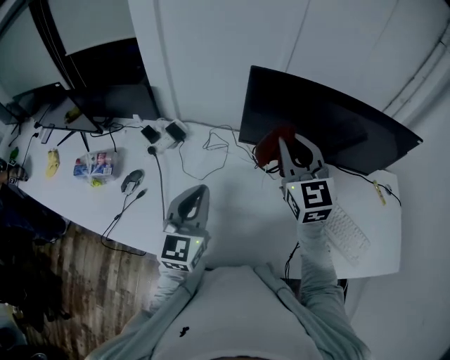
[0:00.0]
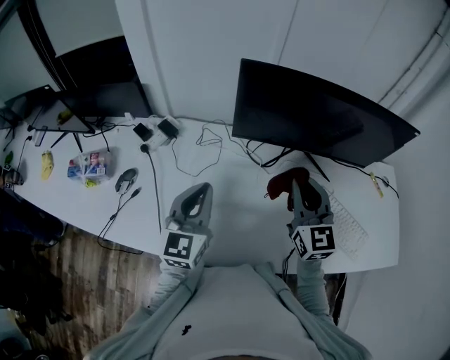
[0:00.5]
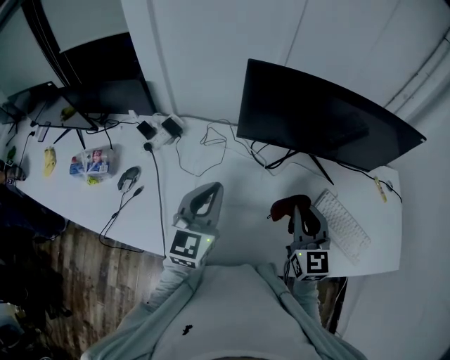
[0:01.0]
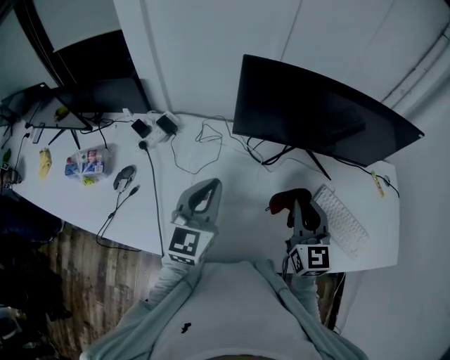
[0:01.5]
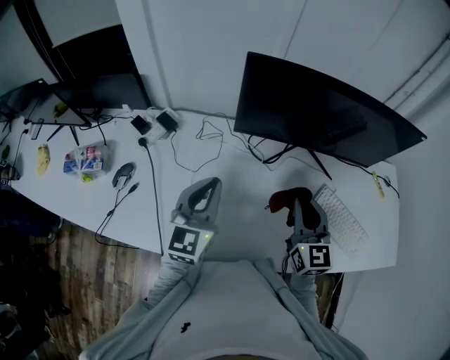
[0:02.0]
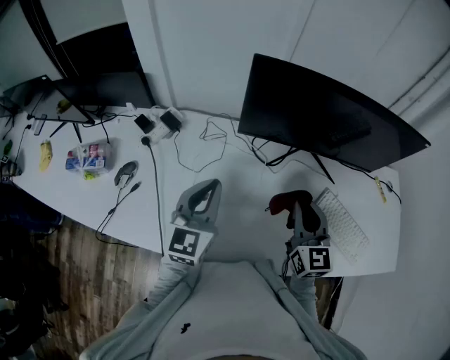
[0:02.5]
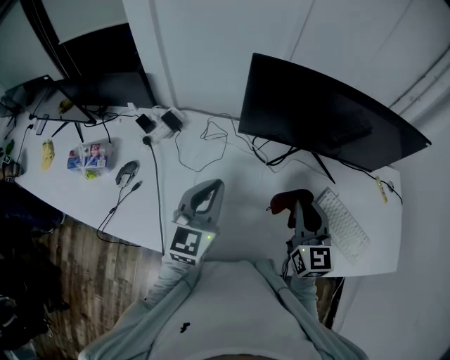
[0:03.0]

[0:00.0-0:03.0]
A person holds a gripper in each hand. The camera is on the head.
0:00.0 to 0:01.5: The left gripper heads to the right, covering roughly 5 cm; the right gripper goes about 20 cm downward, backward and to the right.
0:01.5 to 0:03.0: The grippers move only a little.

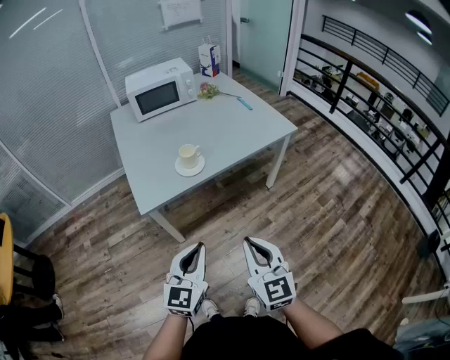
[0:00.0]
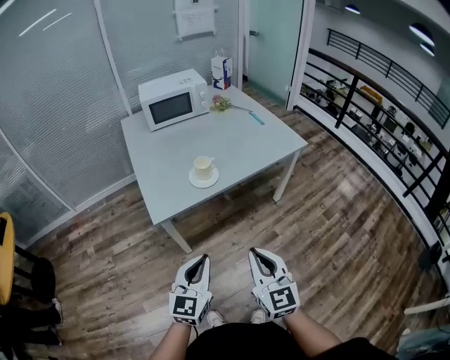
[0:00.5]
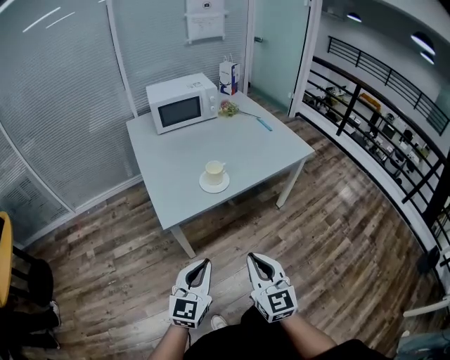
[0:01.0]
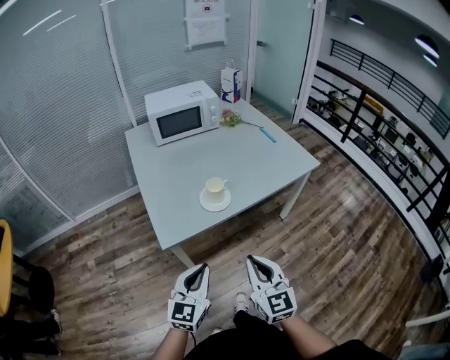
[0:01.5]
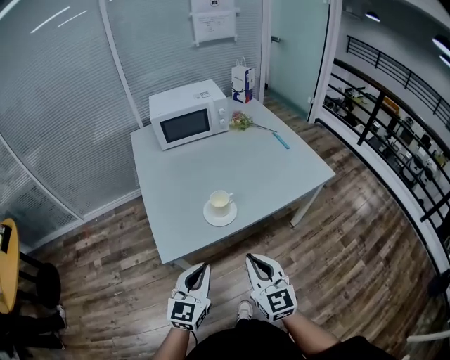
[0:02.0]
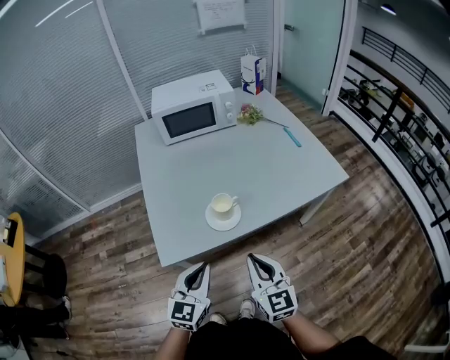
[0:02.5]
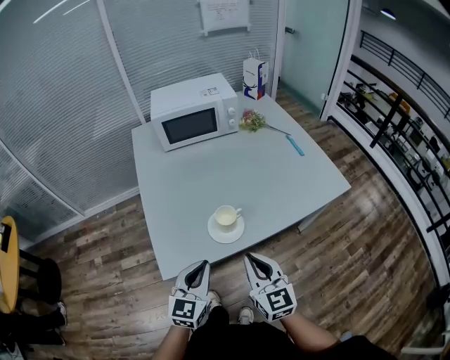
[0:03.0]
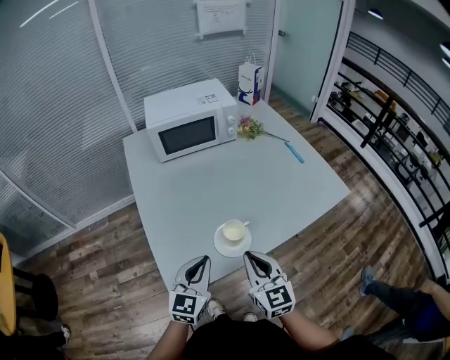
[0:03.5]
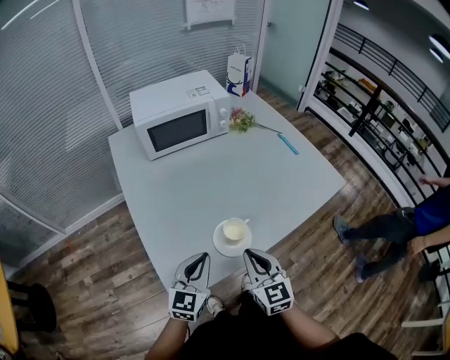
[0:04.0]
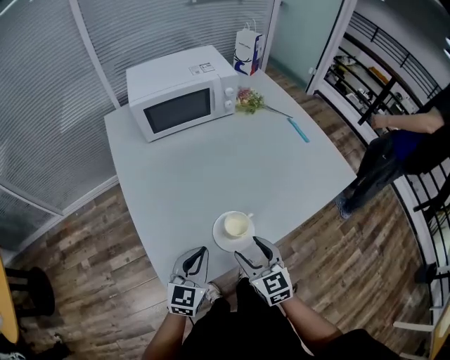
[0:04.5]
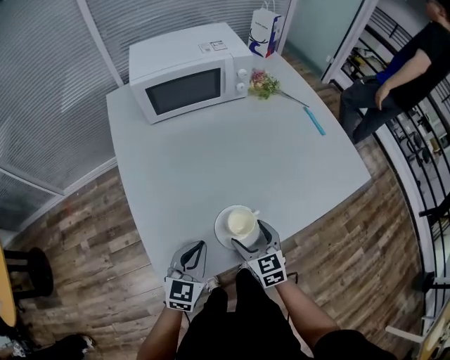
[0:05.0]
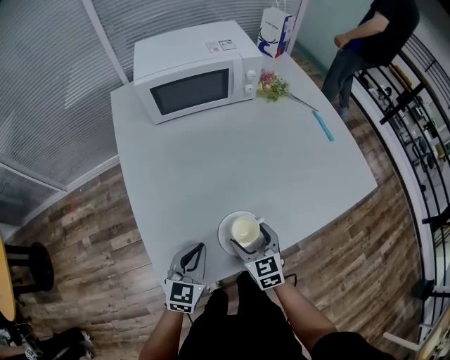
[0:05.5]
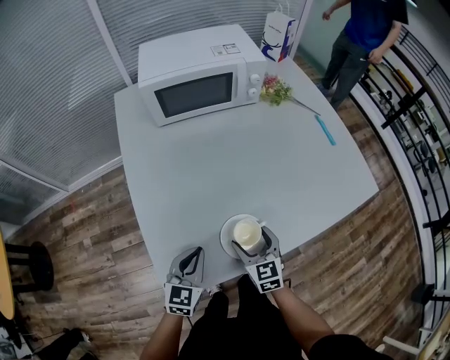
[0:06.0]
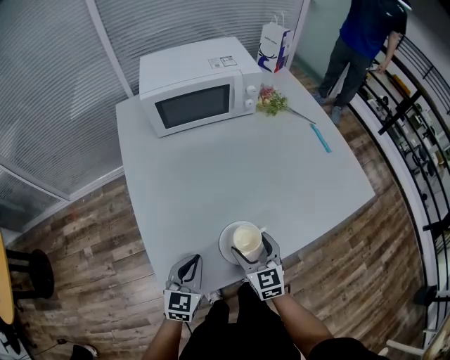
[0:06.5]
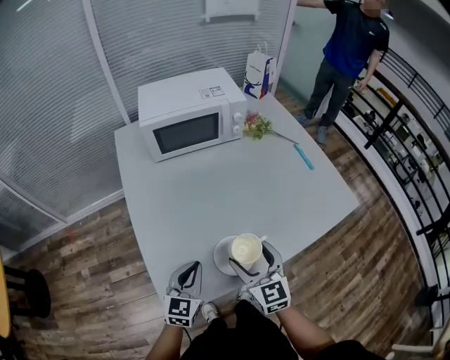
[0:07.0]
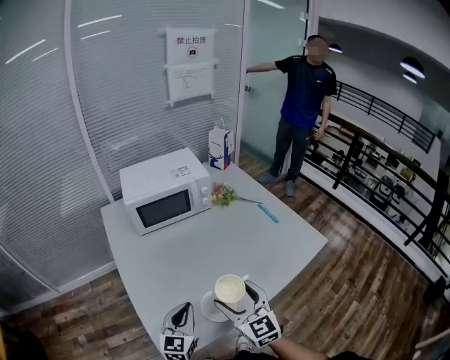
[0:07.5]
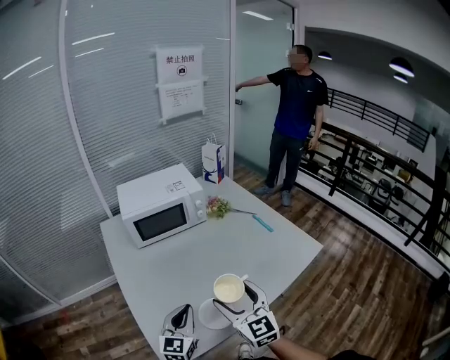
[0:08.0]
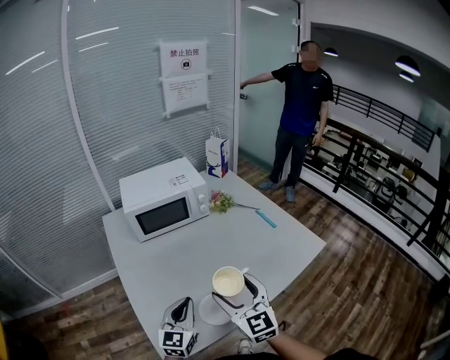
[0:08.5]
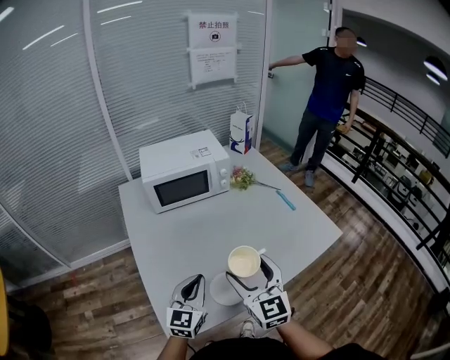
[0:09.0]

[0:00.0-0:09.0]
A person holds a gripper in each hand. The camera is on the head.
0:00.0 to 0:02.0: The two grippers go roughly 20 cm forward and to the left.
0:02.0 to 0:04.5: The left gripper moves forward, about 20 cm, while the right gripper is displaced forward and downward by some 25 cm, and opens its fingers.
0:04.5 to 0:07.0: The right gripper goes roughly 5 cm forward, and reaches some 10 cm downward, then returns.
0:07.0 to 0:09.0: The grippers both shift upward by roughly 15 cm.

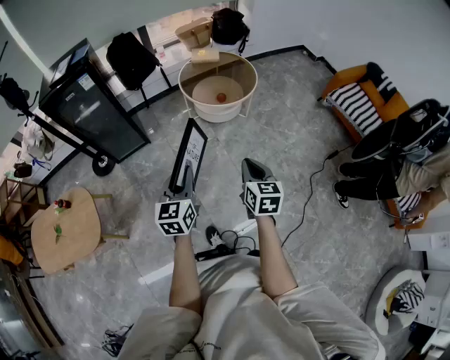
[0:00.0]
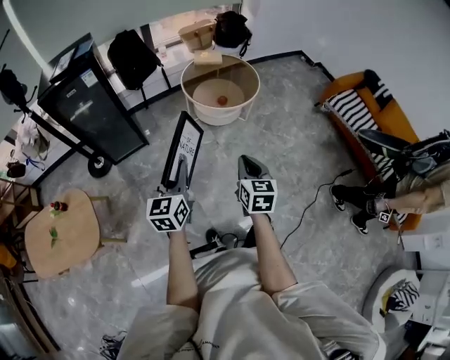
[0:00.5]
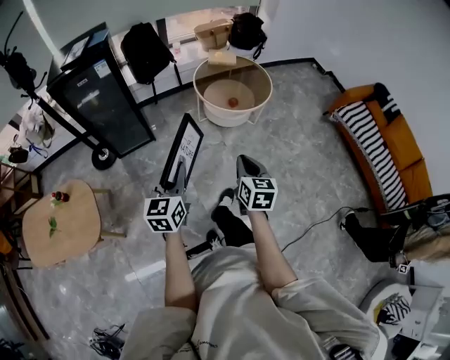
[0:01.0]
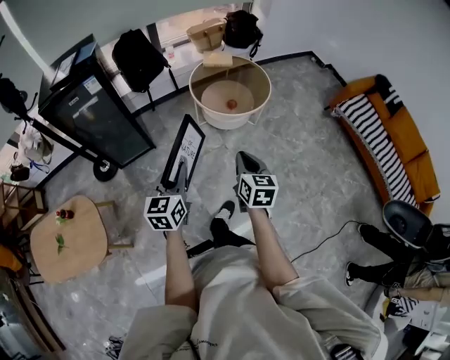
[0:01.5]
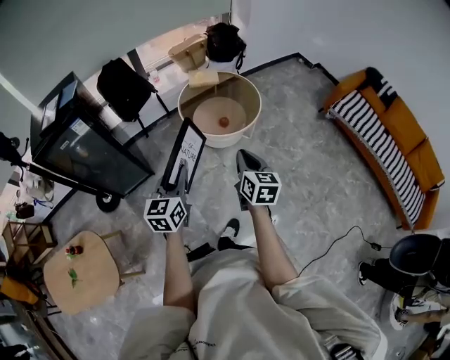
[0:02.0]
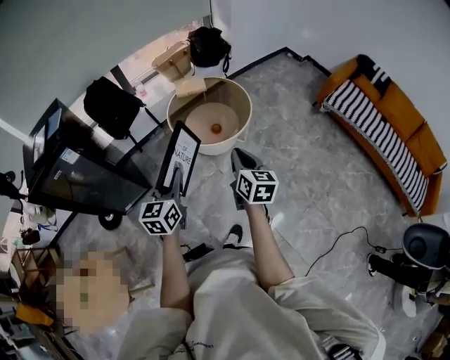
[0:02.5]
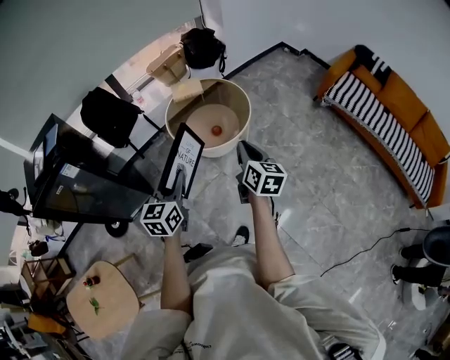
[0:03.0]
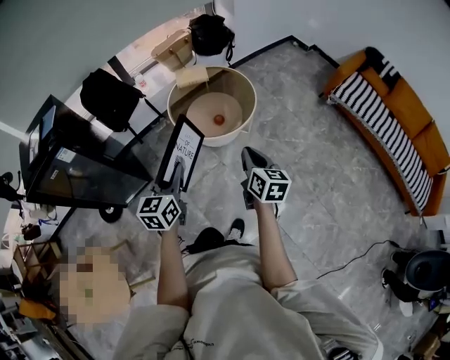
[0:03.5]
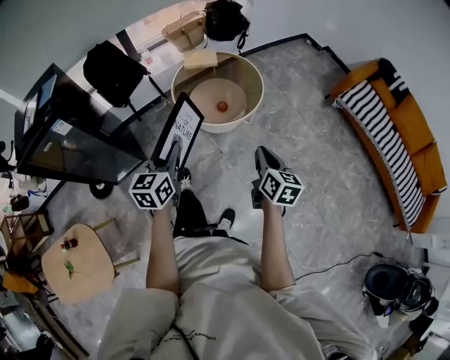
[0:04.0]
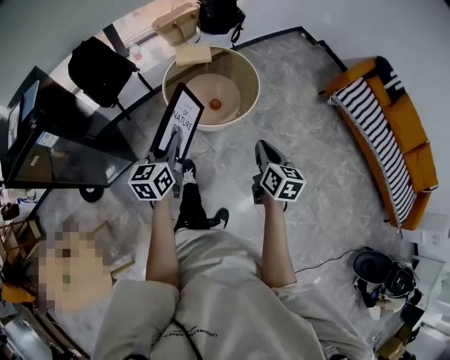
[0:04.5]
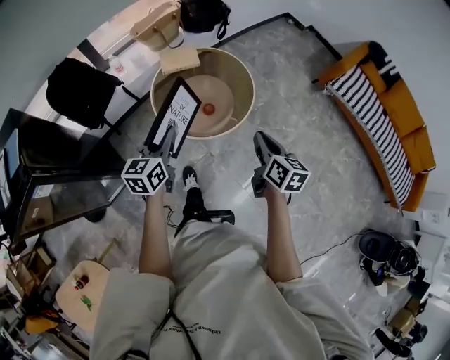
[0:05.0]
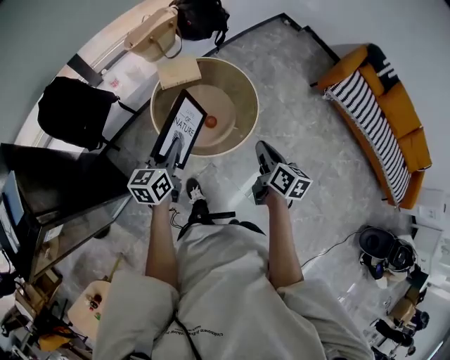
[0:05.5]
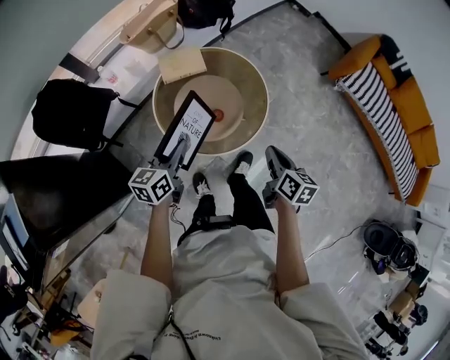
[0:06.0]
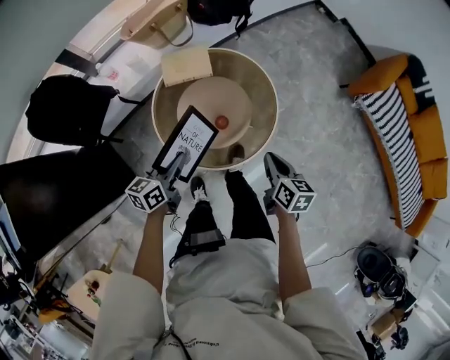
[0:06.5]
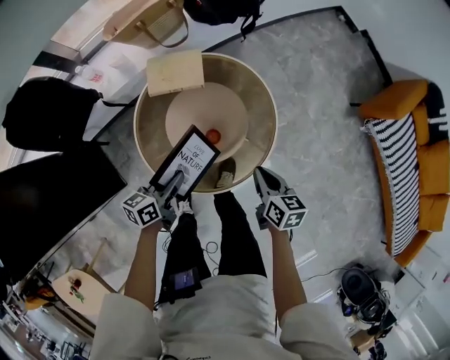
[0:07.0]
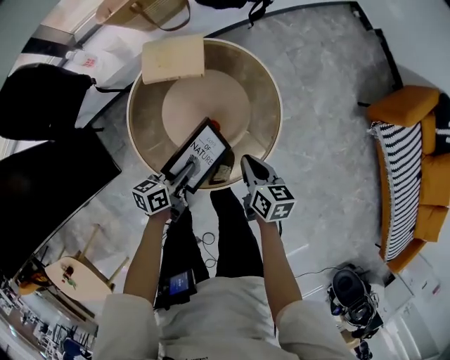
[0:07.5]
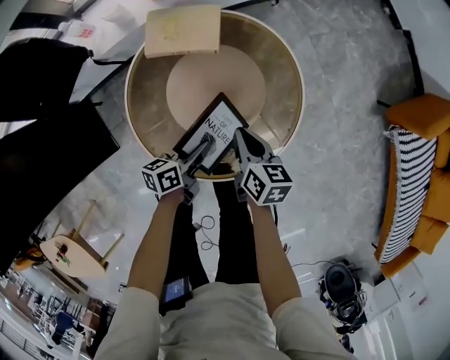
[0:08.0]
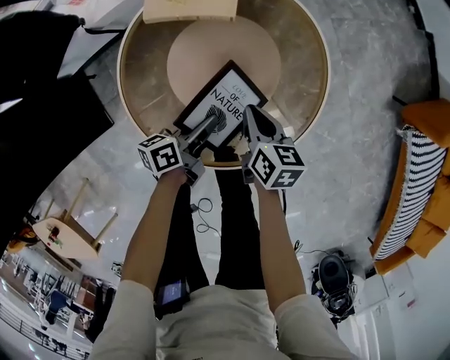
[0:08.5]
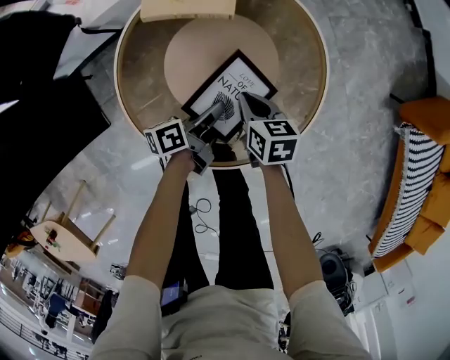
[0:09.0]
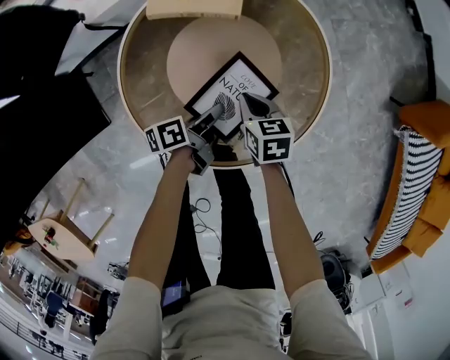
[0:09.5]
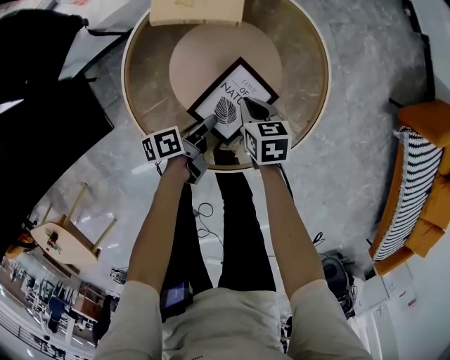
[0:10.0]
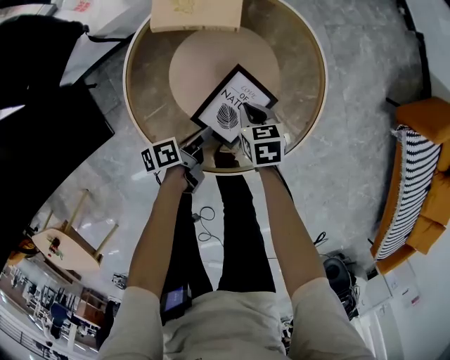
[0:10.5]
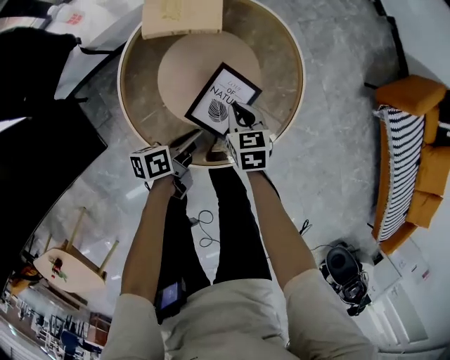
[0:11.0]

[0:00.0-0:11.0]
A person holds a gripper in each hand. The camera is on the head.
0:00.0 to 0:02.0: The right gripper travels forward by approximately 25 cm; the left gripper goes roughly 25 cm forward and to the left.
0:02.0 to 0:03.5: The left gripper is displaced forward by some 10 cm, while the right gripper heads forward and to the right, covering approximately 10 cm.
0:03.5 to 0:05.5: Both grippers move forward, some 35 cm.
0:05.5 to 0:07.5: The left gripper is displaced downward, forward and to the right by about 40 cm, and rotates some 30 degrees. The right gripper heads downward and forward, covering roughly 40 cm, and swivels about 30 degrees.
0:07.5 to 0:09.0: The left gripper moves downward and forward, about 15 cm, and turns by some 30 degrees; the right gripper moves downward and to the left, approximately 20 cm.
0:09.0 to 0:11.0: The right gripper ends up approximately 5 cm from where it was, and turns by roughly 20 degrees, while the left gripper shifts roughly 10 cm backward, to the left and upward.

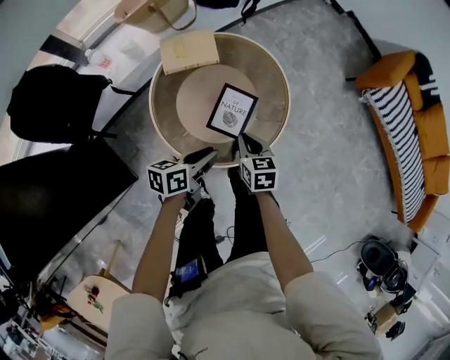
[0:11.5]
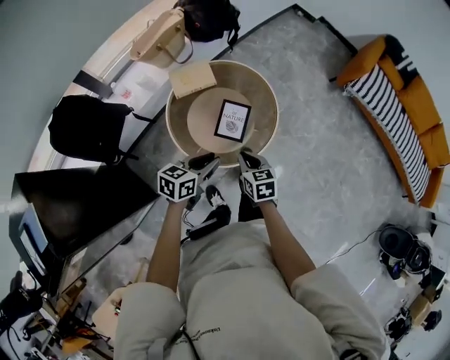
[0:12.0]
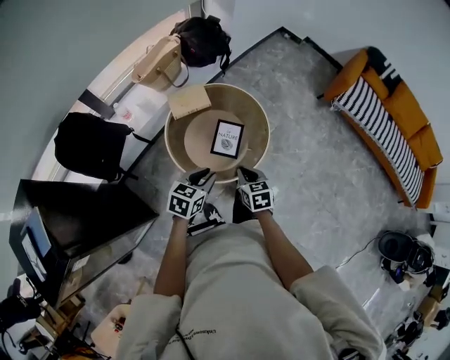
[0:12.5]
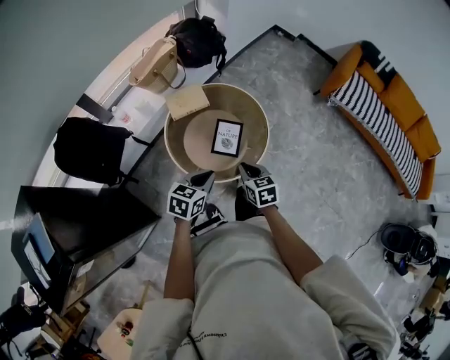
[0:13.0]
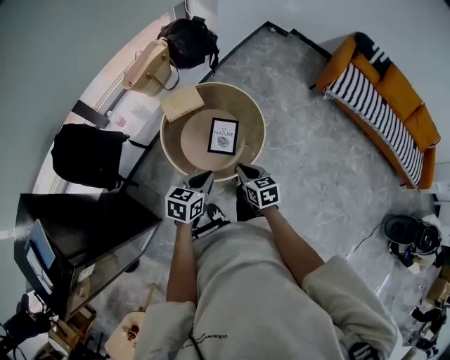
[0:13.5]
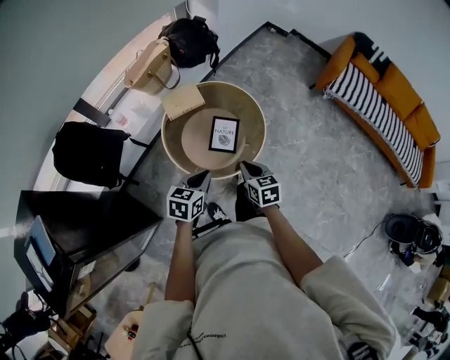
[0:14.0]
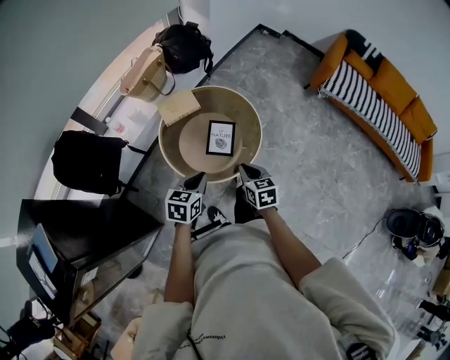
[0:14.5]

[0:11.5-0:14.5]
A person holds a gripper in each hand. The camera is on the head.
0:11.5 to 0:13.0: The grippers both shift upward and backward by roughly 20 cm. The left gripper changes its angle by roughly 40 degrees.
0:13.0 to 0:14.5: The grippers stay close to where they were, moving slightly.
